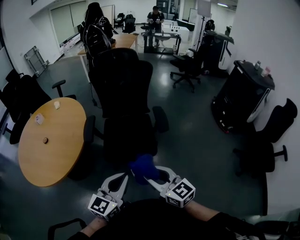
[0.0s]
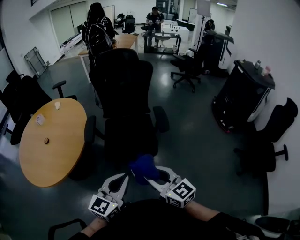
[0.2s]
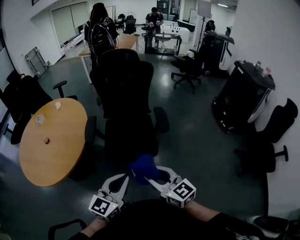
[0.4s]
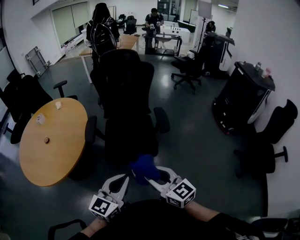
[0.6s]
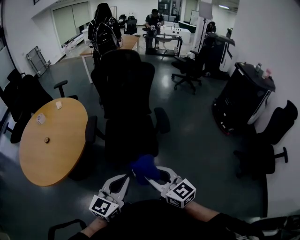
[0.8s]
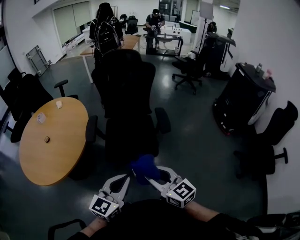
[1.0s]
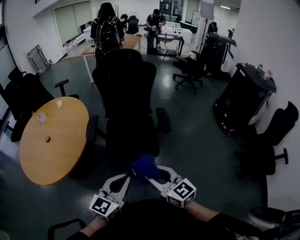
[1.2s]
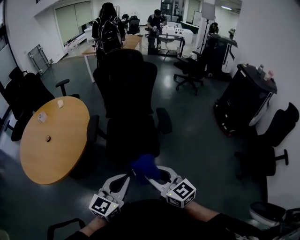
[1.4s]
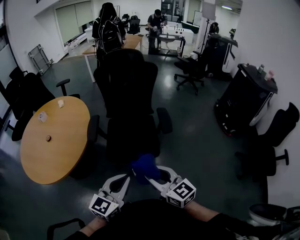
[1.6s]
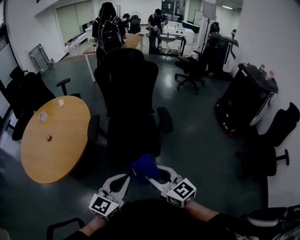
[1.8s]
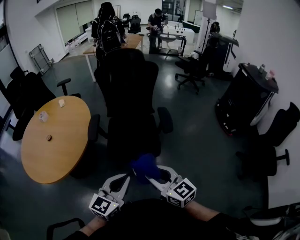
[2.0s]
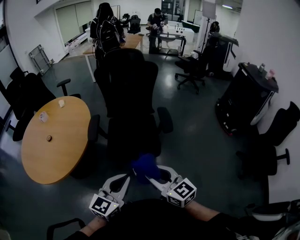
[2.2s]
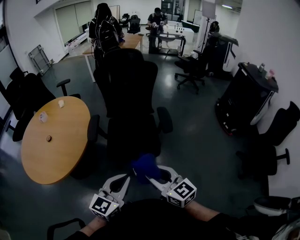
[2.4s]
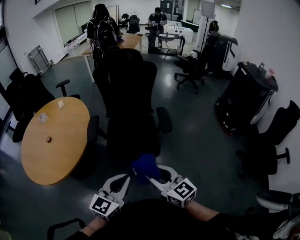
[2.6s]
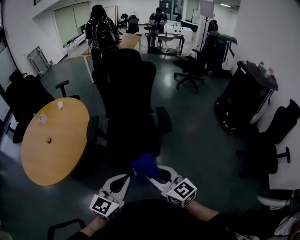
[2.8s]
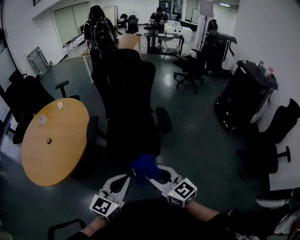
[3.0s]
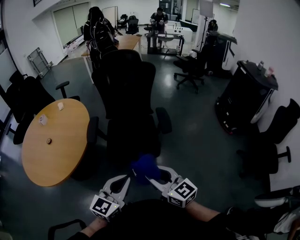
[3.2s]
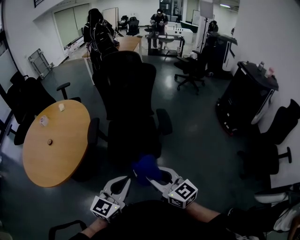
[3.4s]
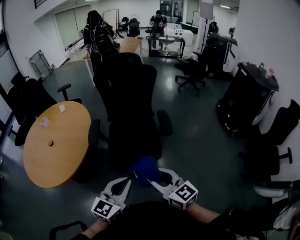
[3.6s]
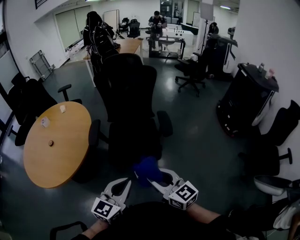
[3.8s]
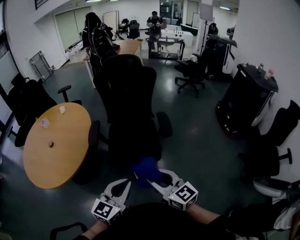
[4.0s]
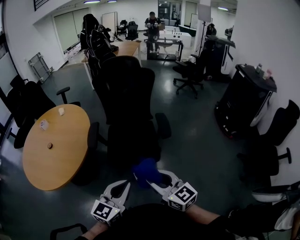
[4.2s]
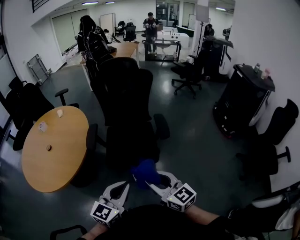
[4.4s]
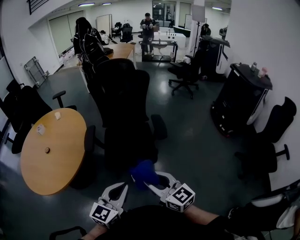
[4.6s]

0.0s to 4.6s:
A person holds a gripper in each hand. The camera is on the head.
0.0s to 1.6s: The grippers make only small movements.
1.6s to 3.0s: The two grippers keep their place.
3.0s to 4.6s: Neither gripper changes place.

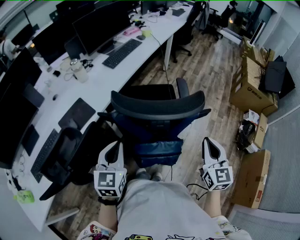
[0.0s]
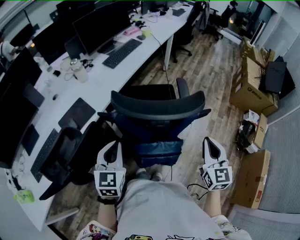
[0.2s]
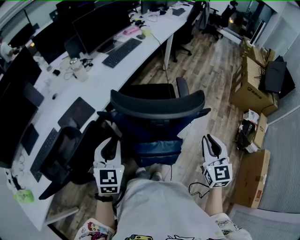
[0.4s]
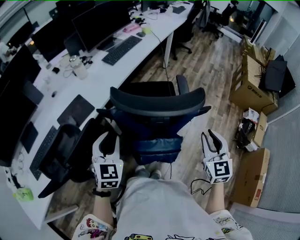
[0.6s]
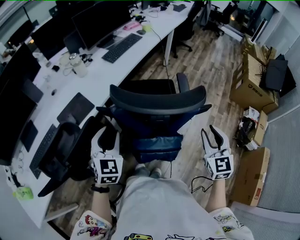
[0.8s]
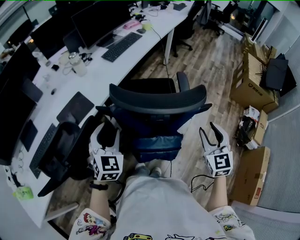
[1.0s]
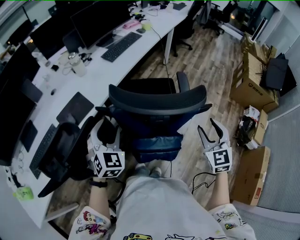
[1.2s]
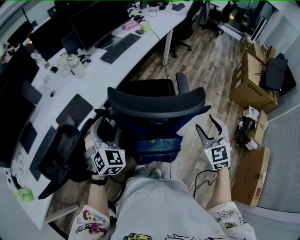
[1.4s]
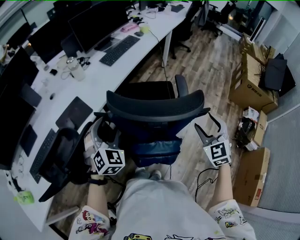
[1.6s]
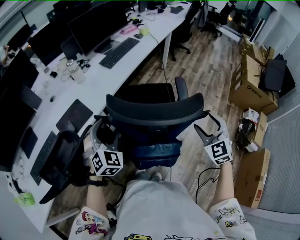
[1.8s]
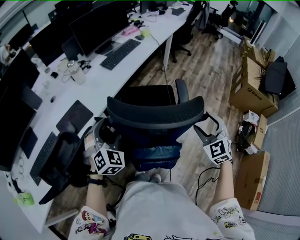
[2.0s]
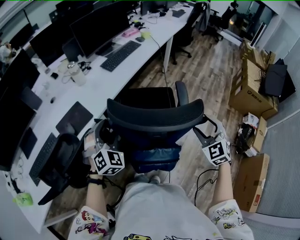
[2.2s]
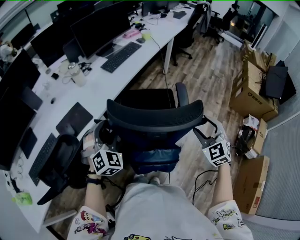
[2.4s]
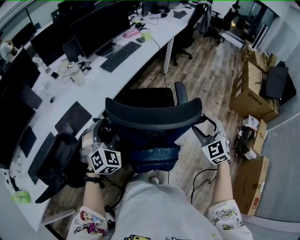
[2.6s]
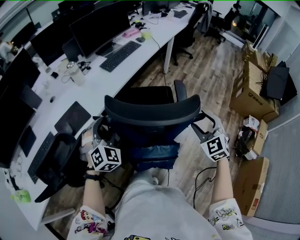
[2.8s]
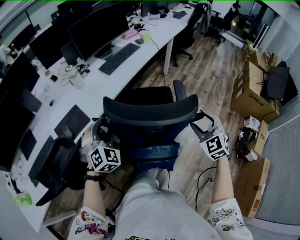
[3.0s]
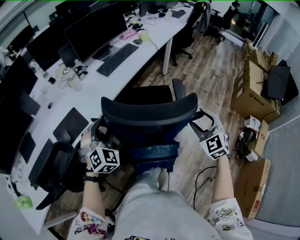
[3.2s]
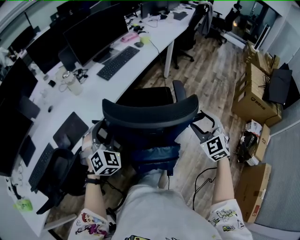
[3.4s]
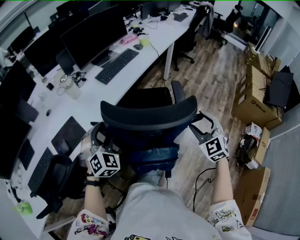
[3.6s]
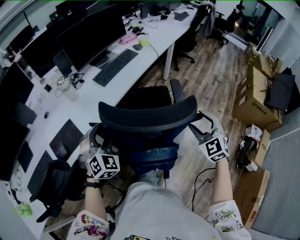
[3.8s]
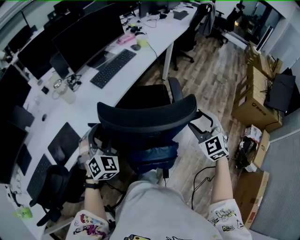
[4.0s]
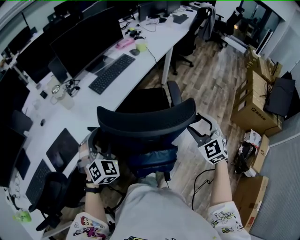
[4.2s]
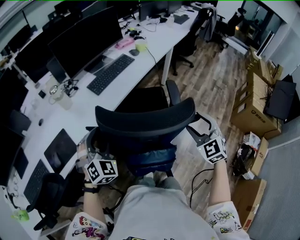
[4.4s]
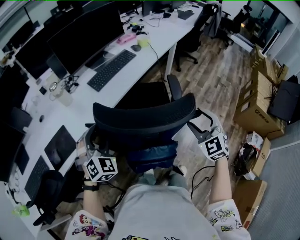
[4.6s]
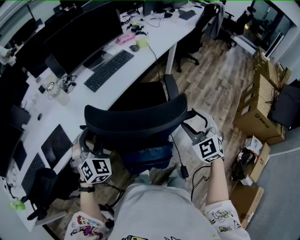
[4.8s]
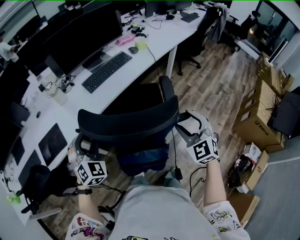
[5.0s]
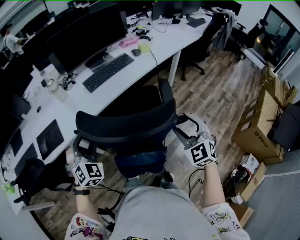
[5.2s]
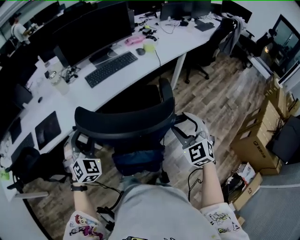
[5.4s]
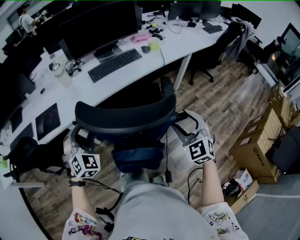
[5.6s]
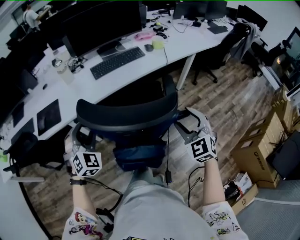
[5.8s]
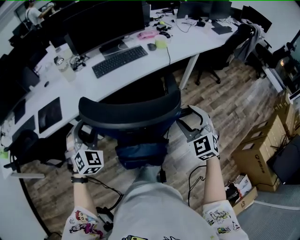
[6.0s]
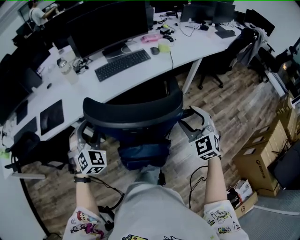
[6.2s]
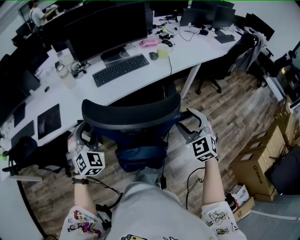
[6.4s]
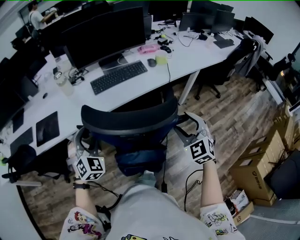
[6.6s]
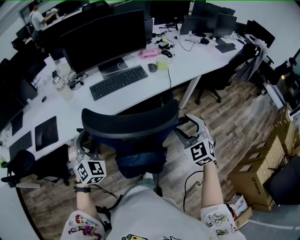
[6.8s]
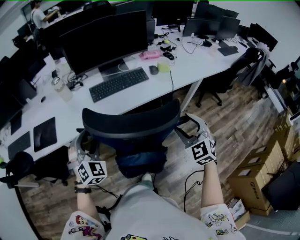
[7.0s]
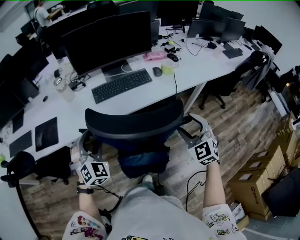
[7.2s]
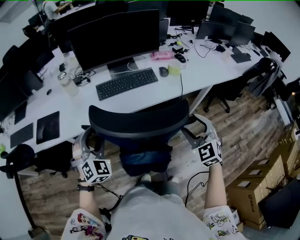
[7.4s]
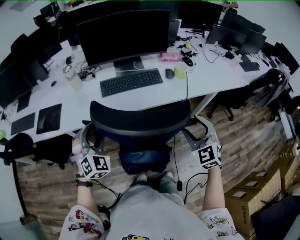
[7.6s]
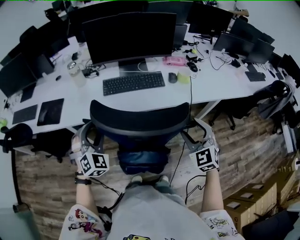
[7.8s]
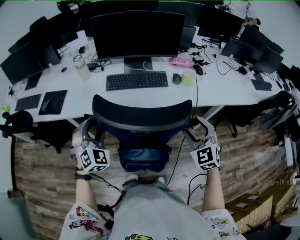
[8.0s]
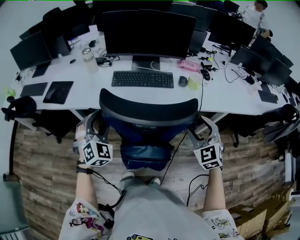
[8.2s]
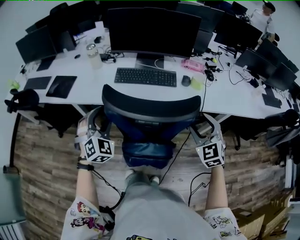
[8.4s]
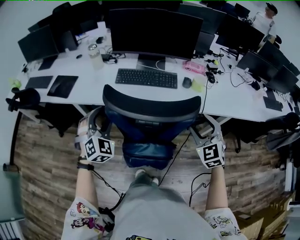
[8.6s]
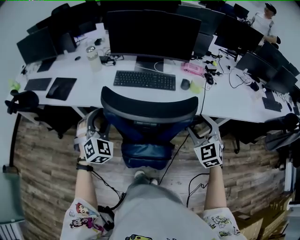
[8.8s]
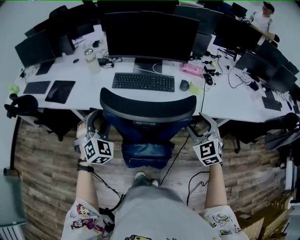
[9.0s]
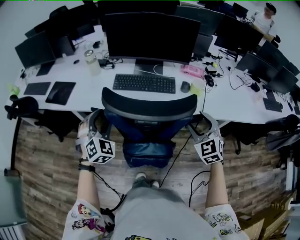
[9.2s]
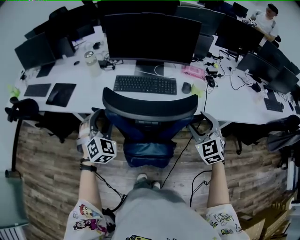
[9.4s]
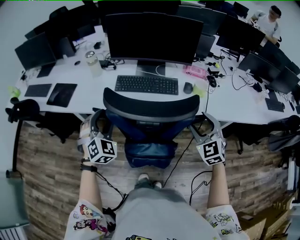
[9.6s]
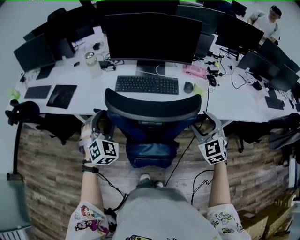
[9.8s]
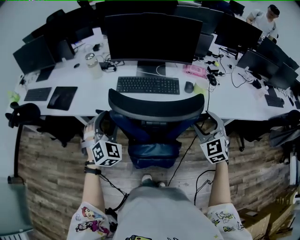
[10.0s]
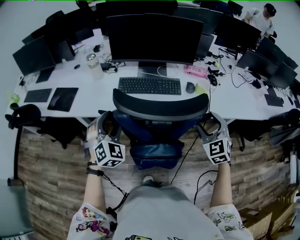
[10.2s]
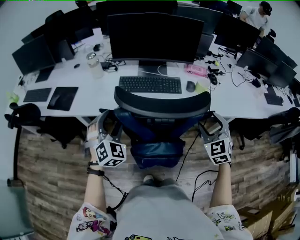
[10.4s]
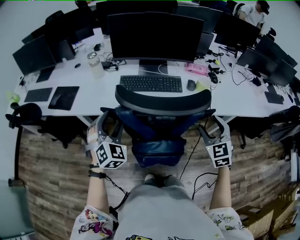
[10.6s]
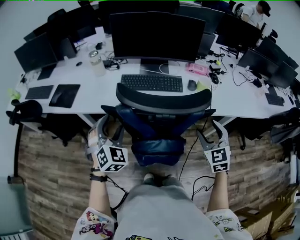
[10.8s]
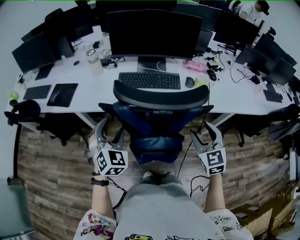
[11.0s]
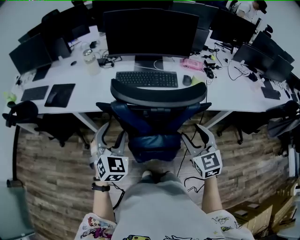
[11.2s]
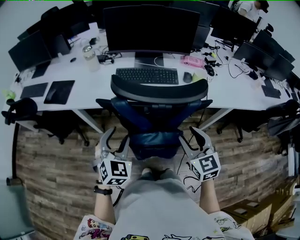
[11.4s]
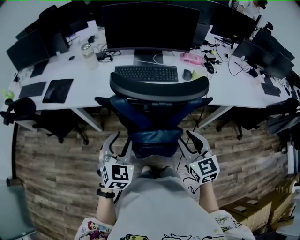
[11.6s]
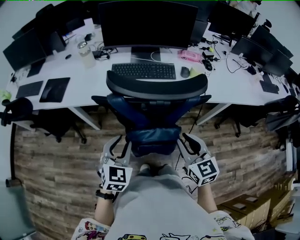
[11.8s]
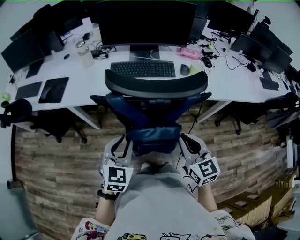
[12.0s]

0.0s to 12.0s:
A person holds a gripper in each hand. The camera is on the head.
0.0s to 1.6s: Both grippers move forward, some 10 cm. The left gripper twists roughly 40 degrees clockwise, seen from behind, and opens; the right gripper rotates some 30 degrees, and opens its fingers.
1.6s to 3.0s: The two grippers go roughly 5 cm forward.
3.0s to 4.4s: The two grippers go some 15 cm forward and to the right.
4.4s to 6.0s: The right gripper shifts approximately 15 cm to the right and forward, and turns by approximately 20 degrees; the left gripper is displaced to the right by about 10 cm, and rotates approximately 20 degrees.
6.0s to 7.6s: Both grippers travel together forward and to the right, roughly 20 cm.
7.6s to 9.0s: The right gripper travels forward and to the right by approximately 10 cm; the left gripper moves to the right, approximately 5 cm.
9.0s to 10.4s: The grippers move only a little.
10.4s to 12.0s: The right gripper shifts some 15 cm backward and to the left, rotates some 40 degrees, and closes its fingers, while the left gripper moves backward, about 15 cm, turns by roughly 40 degrees, and closes its fingers.

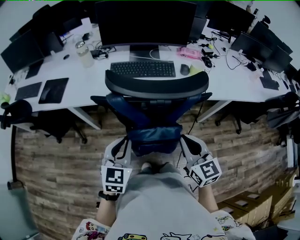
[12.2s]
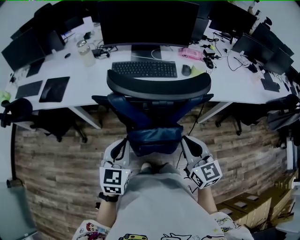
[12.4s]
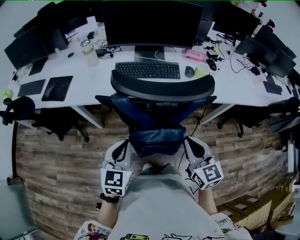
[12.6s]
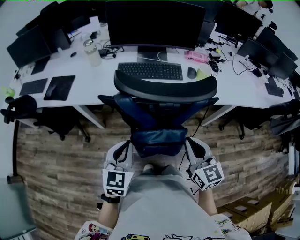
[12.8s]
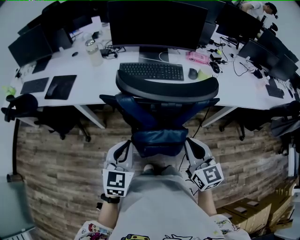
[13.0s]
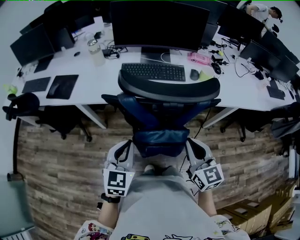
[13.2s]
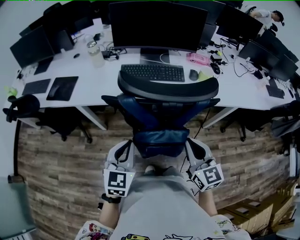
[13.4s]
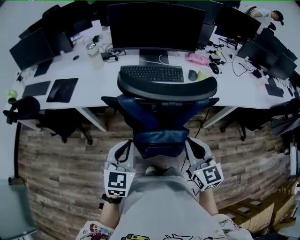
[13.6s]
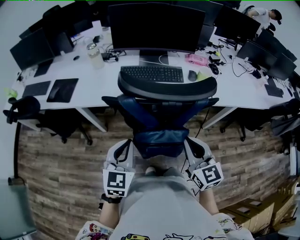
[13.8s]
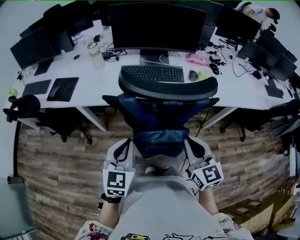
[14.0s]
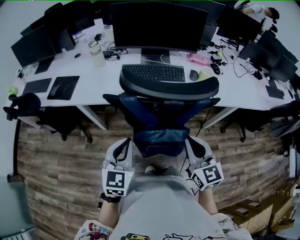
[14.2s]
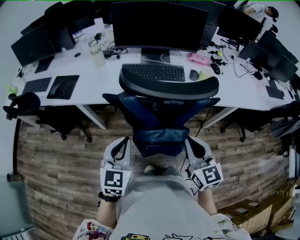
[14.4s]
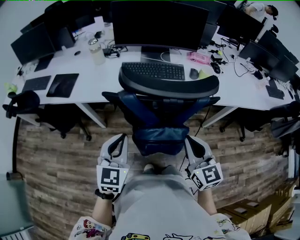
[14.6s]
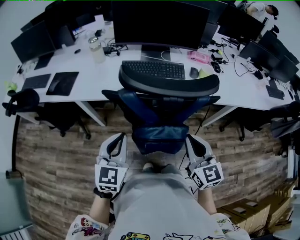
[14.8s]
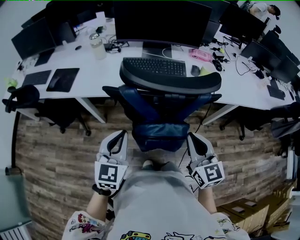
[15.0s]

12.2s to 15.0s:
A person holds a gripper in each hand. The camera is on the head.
12.2s to 15.0s: There are only small adjustments of the grippers.

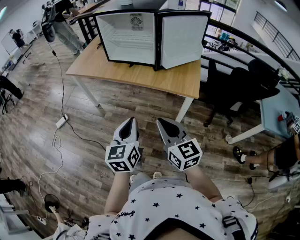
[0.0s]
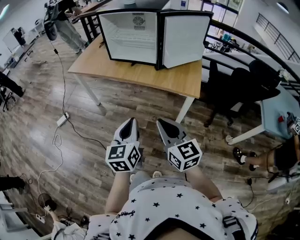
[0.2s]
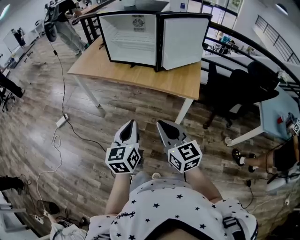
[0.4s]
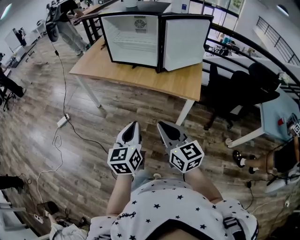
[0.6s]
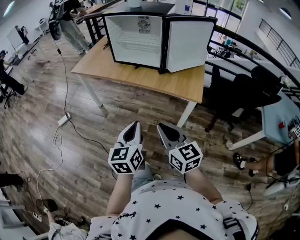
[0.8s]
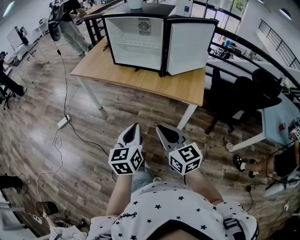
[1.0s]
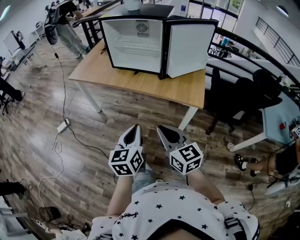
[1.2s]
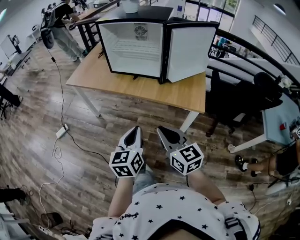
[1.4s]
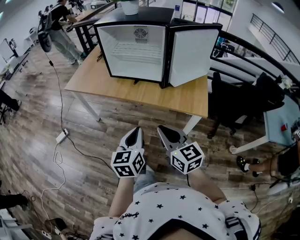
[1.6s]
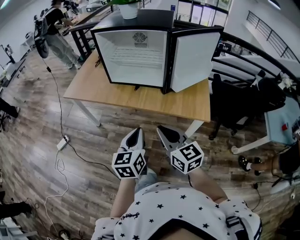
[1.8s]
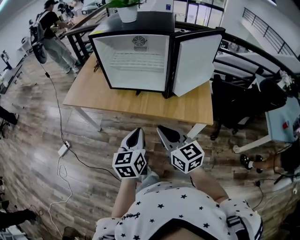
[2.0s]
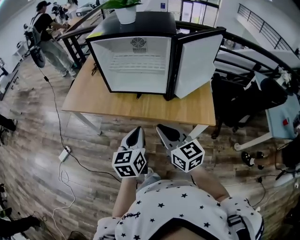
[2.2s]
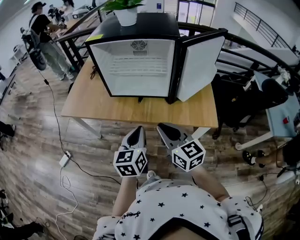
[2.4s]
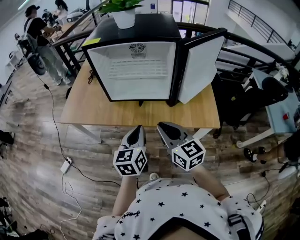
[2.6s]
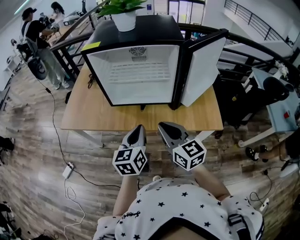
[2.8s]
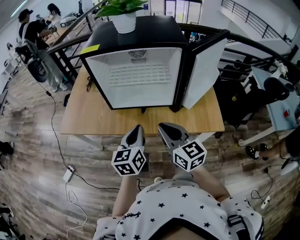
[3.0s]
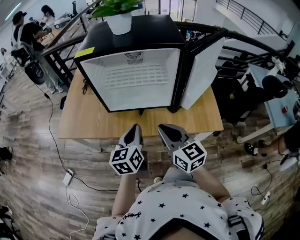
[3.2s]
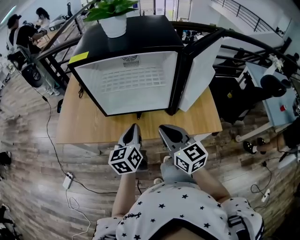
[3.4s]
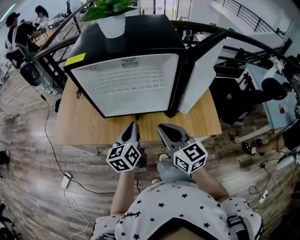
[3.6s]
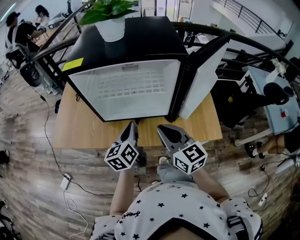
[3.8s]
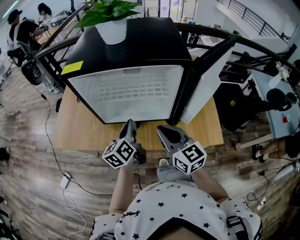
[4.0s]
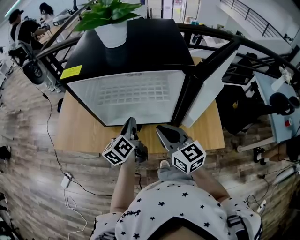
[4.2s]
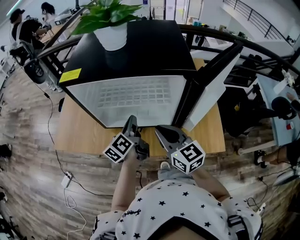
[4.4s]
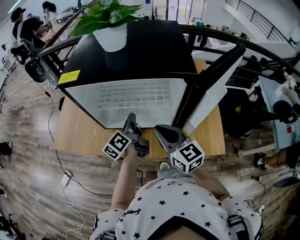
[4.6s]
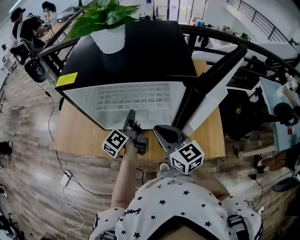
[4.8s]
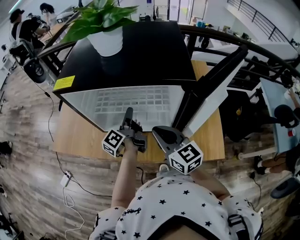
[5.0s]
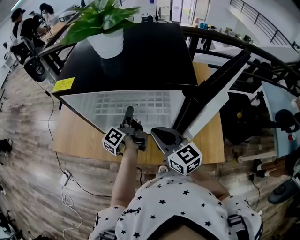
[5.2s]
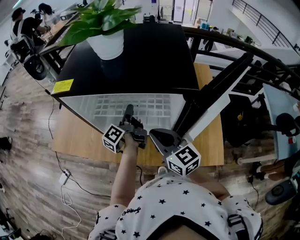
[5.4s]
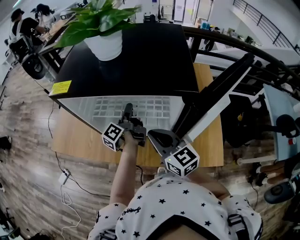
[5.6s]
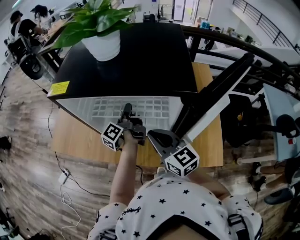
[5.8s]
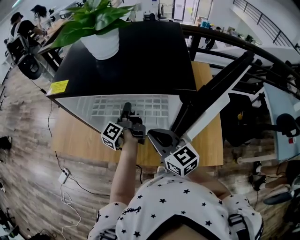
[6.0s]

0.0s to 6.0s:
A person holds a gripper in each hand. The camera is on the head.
0.0s to 1.6s: The grippers both shift forward by about 10 cm.
1.6s to 3.0s: The grippers both shift forward by roughly 25 cm.
3.0s to 4.4s: Both grippers travel together forward, roughly 15 cm. The left gripper changes its angle by roughly 40 degrees.
4.4s to 6.0s: The left gripper moves forward, roughly 10 cm, turns by approximately 30 degrees, and opens, then closes again.
